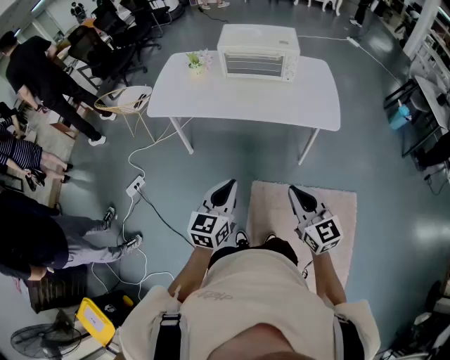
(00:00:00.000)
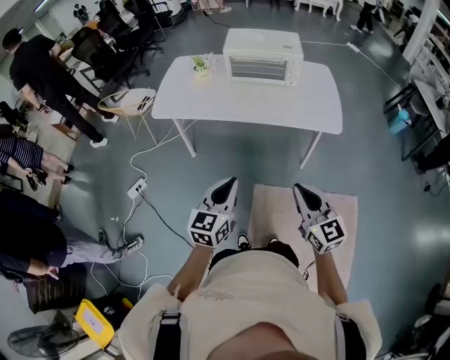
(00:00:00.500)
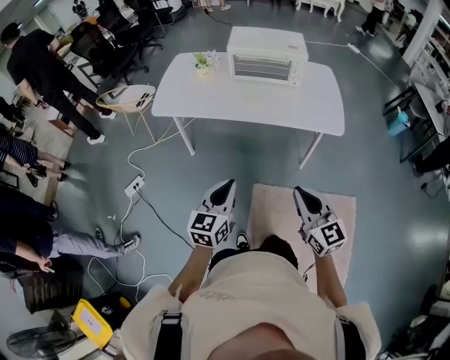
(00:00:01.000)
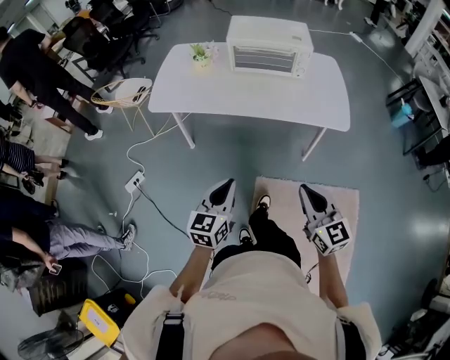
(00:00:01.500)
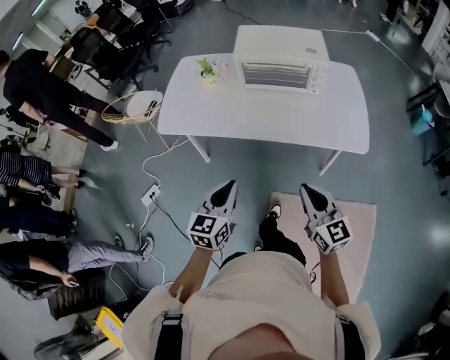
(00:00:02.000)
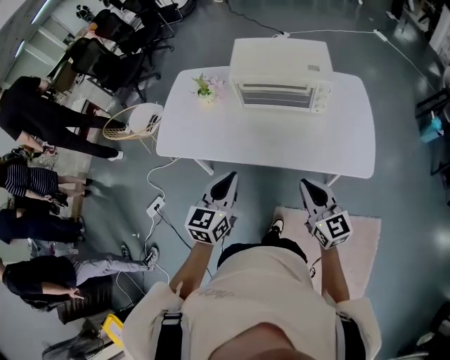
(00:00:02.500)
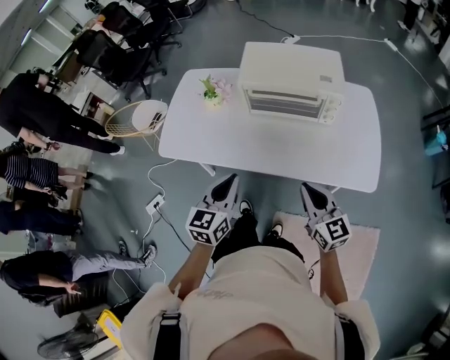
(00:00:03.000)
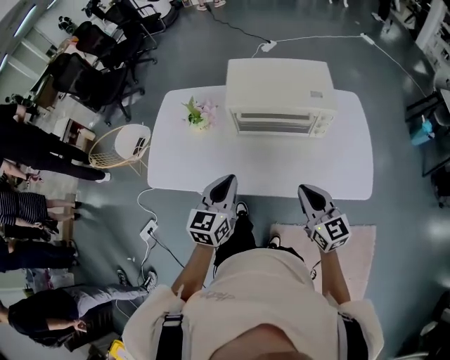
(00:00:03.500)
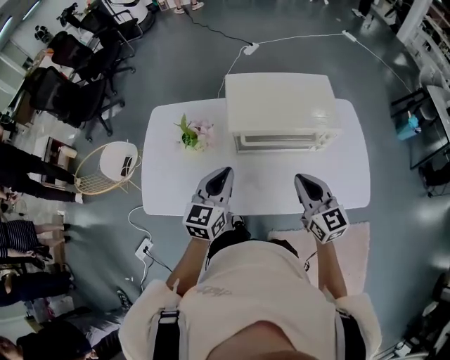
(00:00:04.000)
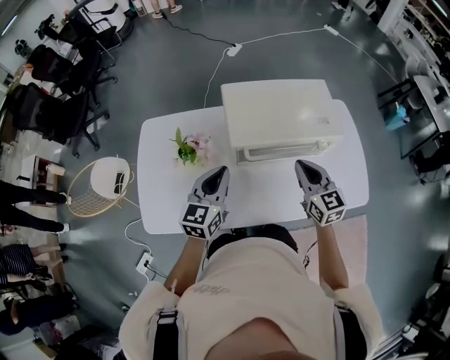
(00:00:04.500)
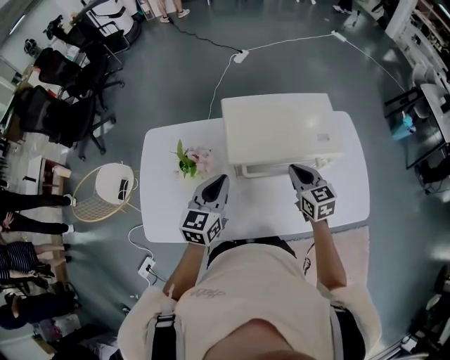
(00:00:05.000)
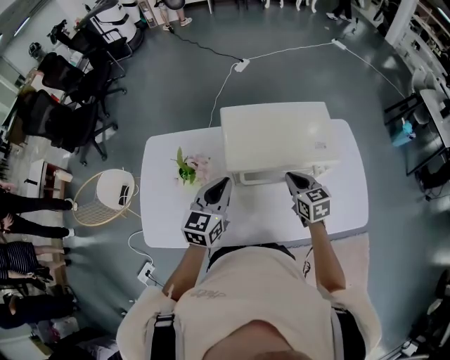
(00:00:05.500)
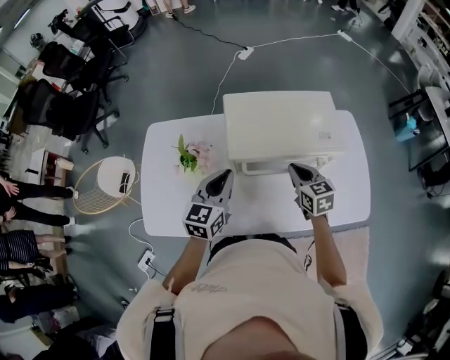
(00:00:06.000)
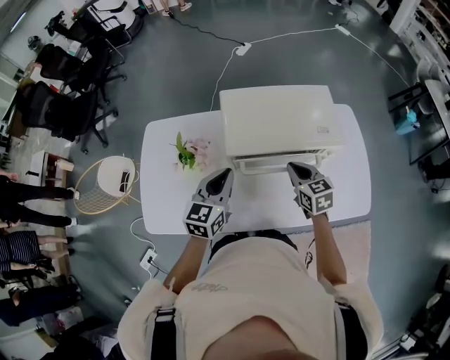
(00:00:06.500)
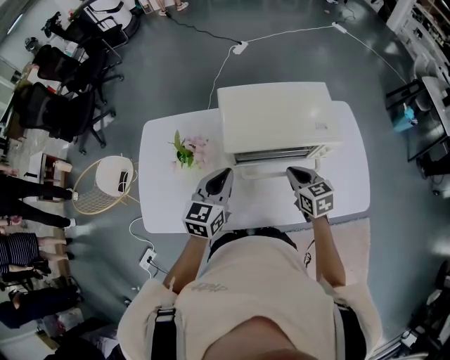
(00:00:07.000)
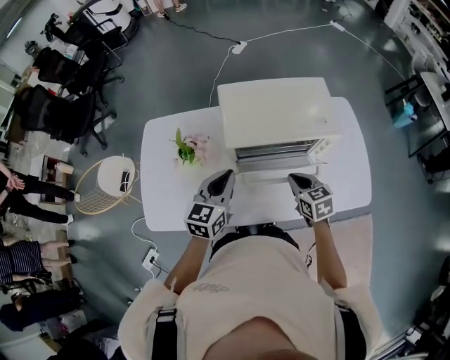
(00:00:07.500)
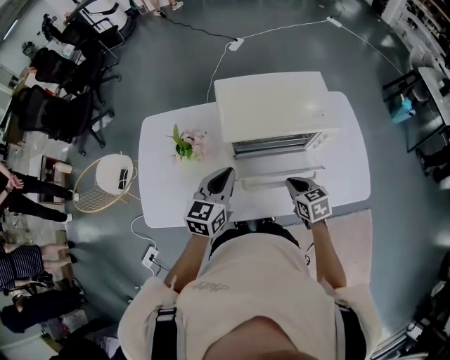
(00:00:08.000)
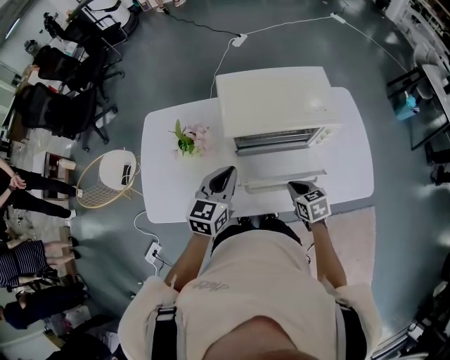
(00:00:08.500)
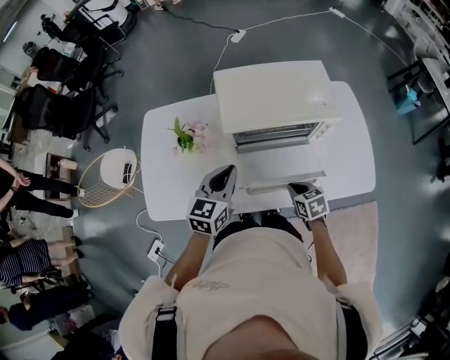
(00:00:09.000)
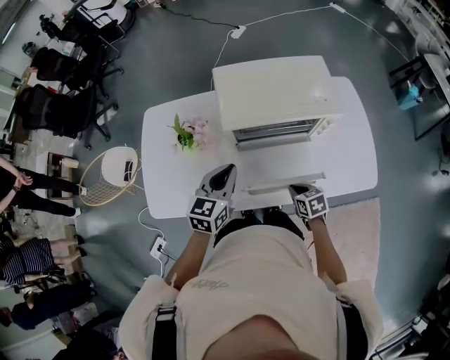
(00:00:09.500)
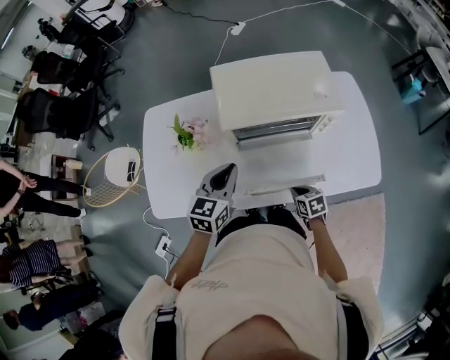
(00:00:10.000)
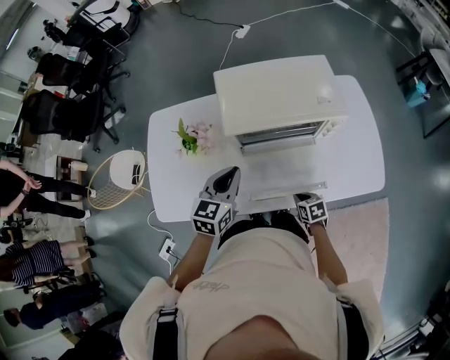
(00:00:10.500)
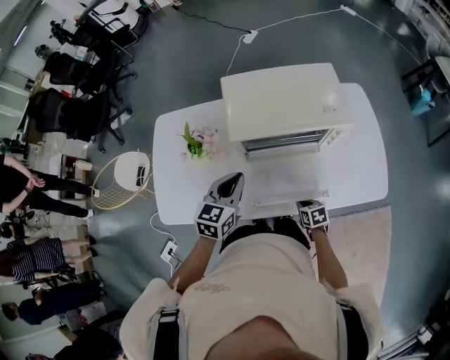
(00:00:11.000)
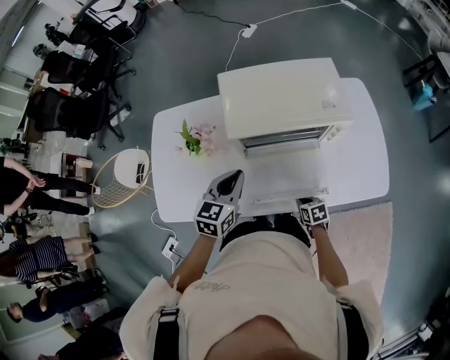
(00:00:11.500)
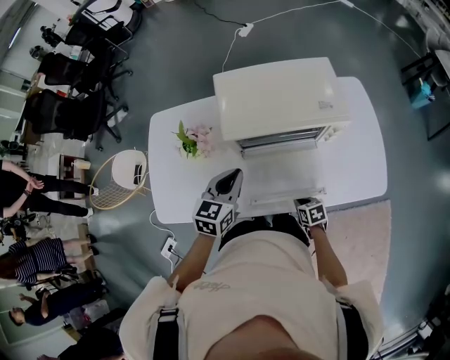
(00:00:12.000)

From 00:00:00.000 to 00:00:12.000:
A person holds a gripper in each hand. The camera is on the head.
From 00:00:00.000 to 00:00:02.000: Both grippers move forward, some 15 cm.
From 00:00:02.000 to 00:00:04.000: The grippers both shift forward by some 40 cm.
From 00:00:04.000 to 00:00:06.000: The left gripper goes some 10 cm forward, while the right gripper is displaced forward and downward by roughly 15 cm, and swivels about 20 degrees.
From 00:00:06.000 to 00:00:08.000: The left gripper ends up about 5 cm from where it was, while the right gripper travels backward and downward by about 15 cm.
From 00:00:08.000 to 00:00:10.000: The right gripper moves downward and backward, about 15 cm.
From 00:00:10.000 to 00:00:12.000: There are only small adjustments of the grippers.

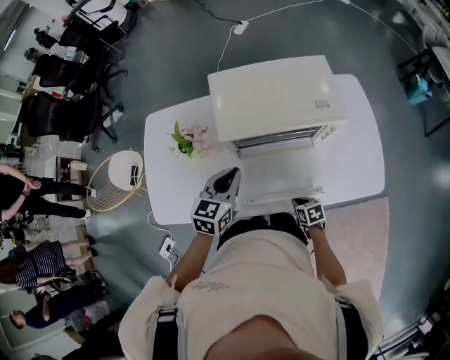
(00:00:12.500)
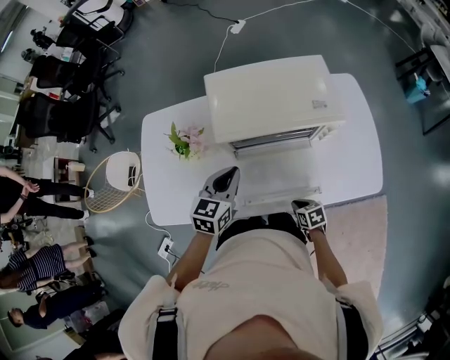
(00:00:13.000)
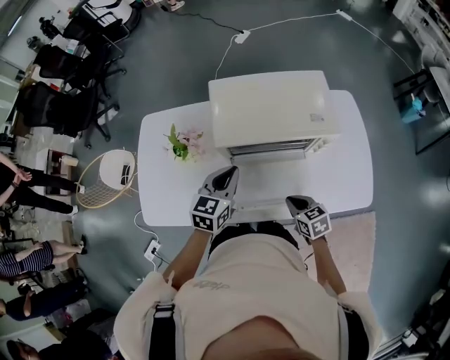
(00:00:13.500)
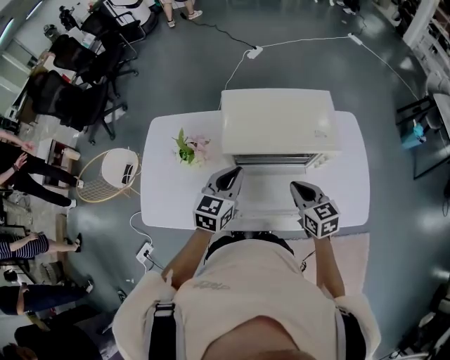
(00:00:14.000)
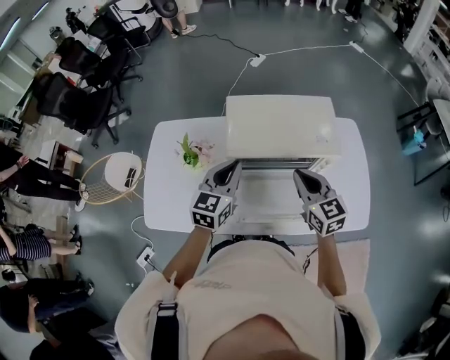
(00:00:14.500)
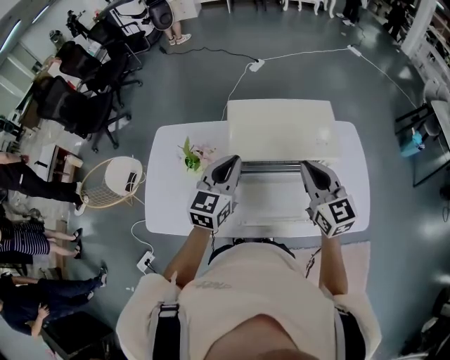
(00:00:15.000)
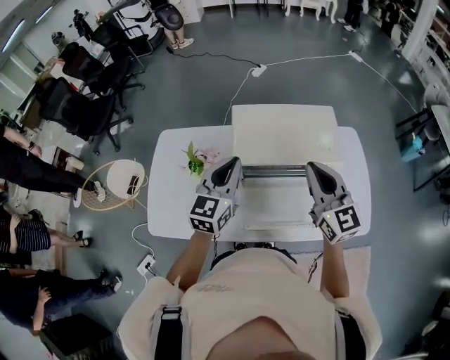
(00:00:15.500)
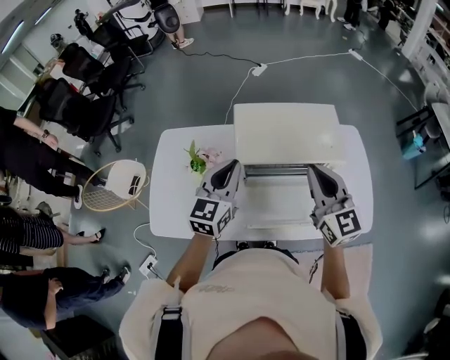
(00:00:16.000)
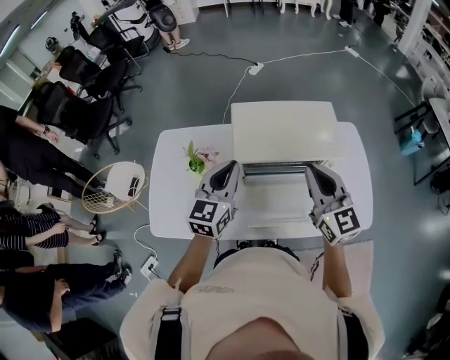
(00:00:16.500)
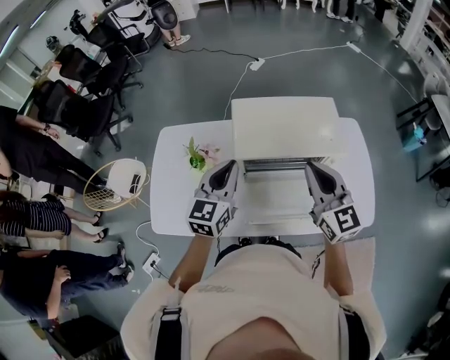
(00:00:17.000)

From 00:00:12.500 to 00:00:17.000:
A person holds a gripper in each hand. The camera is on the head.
From 00:00:12.500 to 00:00:14.500: The right gripper travels upward and forward by approximately 40 cm, and angles its fingers upward, by some 40 degrees, while the left gripper shifts some 10 cm upward.
From 00:00:14.500 to 00:00:17.000: The left gripper changes place by about 5 cm. Meanwhile the right gripper heads upward, covering approximately 10 cm.

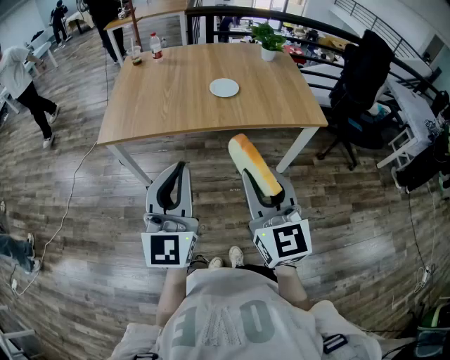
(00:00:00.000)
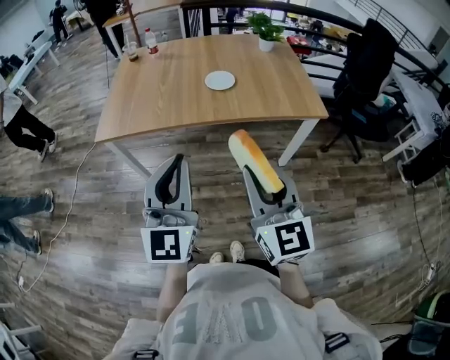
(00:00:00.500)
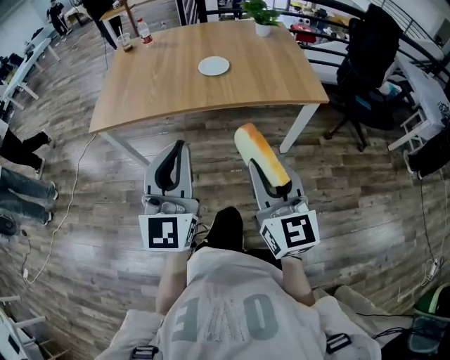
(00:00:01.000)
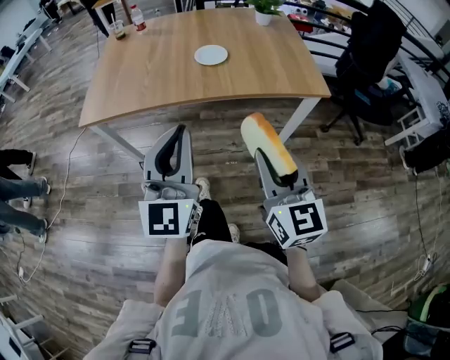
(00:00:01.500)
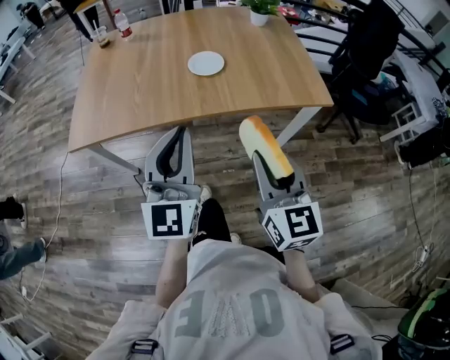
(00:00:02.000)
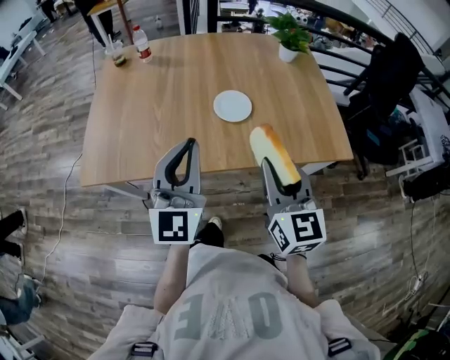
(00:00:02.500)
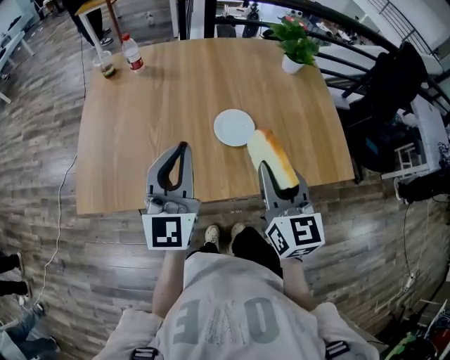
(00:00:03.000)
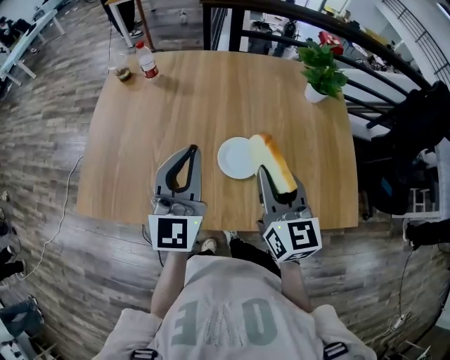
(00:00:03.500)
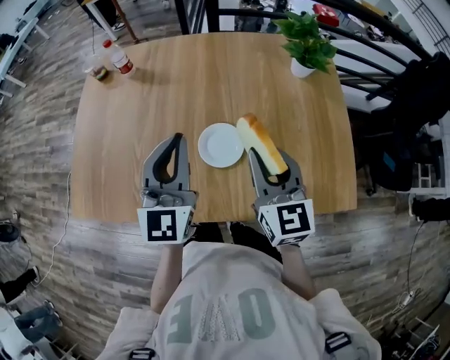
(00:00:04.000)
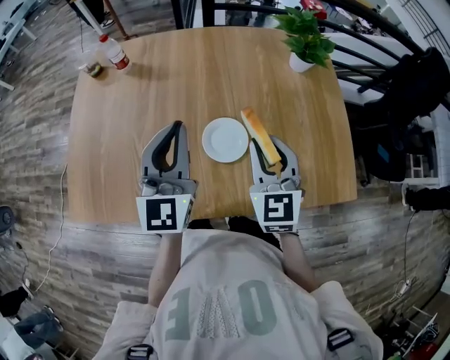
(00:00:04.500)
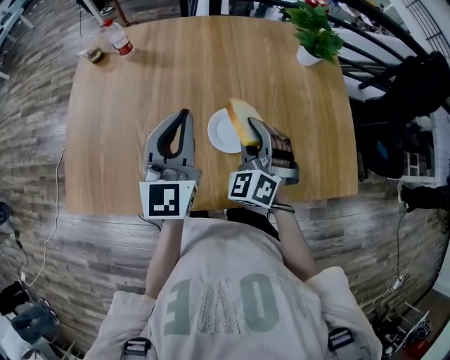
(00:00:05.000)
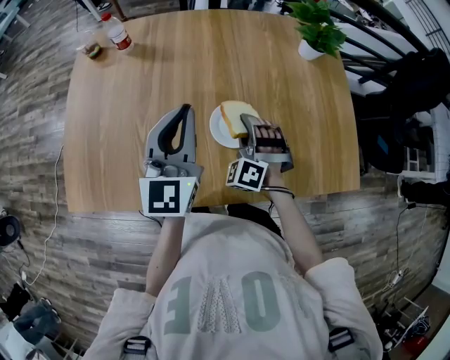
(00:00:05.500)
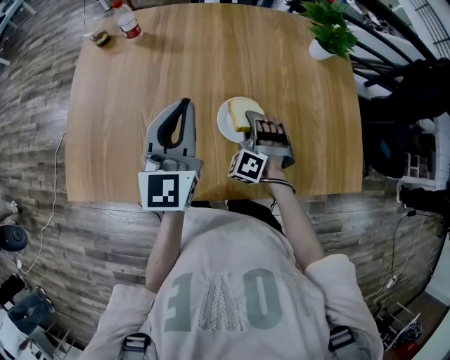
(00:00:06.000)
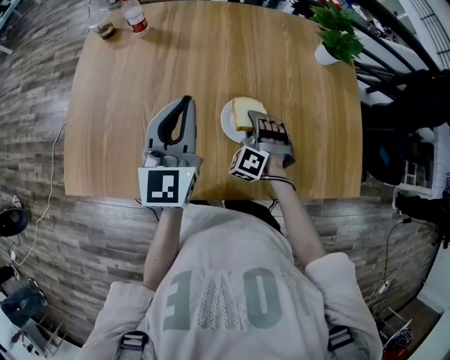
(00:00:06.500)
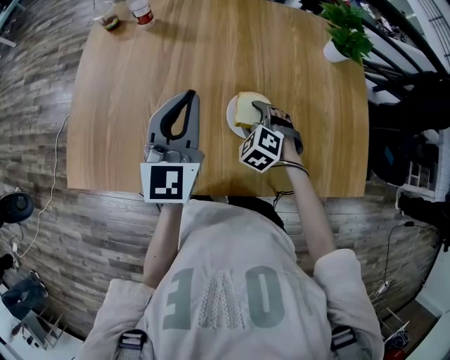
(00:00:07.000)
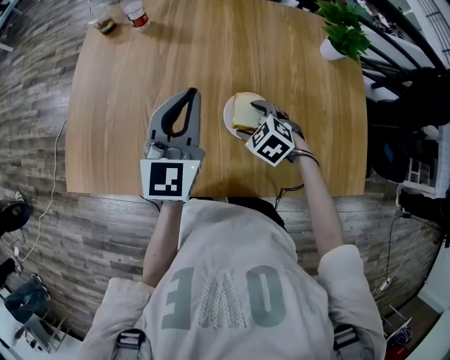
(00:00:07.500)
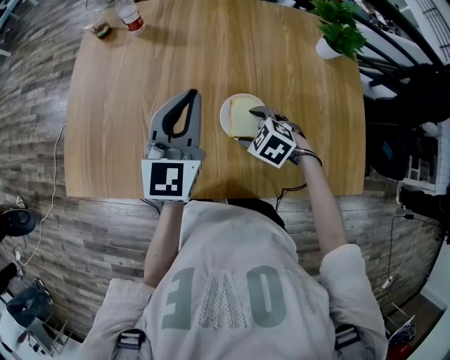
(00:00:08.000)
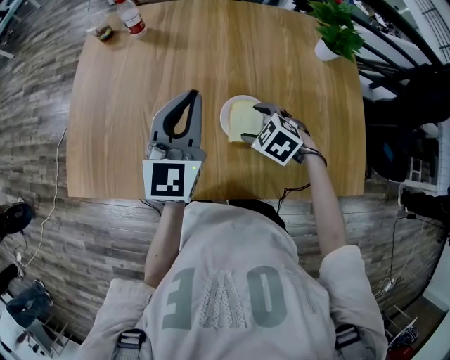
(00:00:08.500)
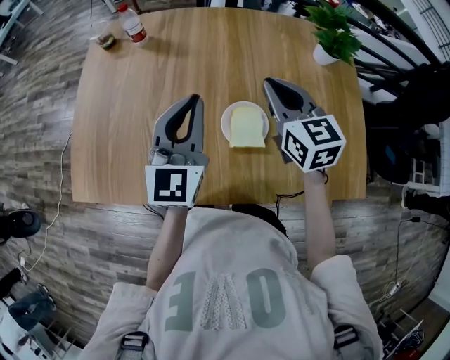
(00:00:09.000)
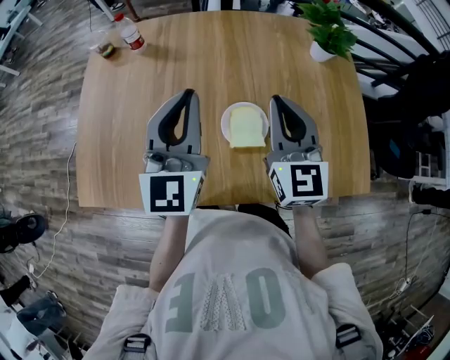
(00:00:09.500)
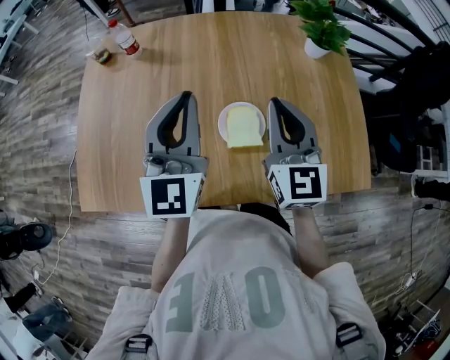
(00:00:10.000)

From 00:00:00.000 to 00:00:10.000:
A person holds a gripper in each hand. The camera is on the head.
From 00:00:00.000 to 00:00:02.000: The right gripper is displaced forward, to the right and downward by some 20 cm. The left gripper shifts about 20 cm forward.
From 00:00:02.000 to 00:00:04.000: Both grippers travel together forward, some 40 cm.
From 00:00:04.000 to 00:00:06.000: The right gripper shifts about 20 cm downward and to the left, and twists some 70 degrees counterclockwise, seen from behind. The left gripper travels to the left by approximately 5 cm.
From 00:00:06.000 to 00:00:08.000: The right gripper points its fingers approximately 30 degrees further downward, and opens.
From 00:00:08.000 to 00:00:10.000: The left gripper shifts approximately 5 cm upward, while the right gripper shifts approximately 25 cm upward, angles its fingers upward, by about 60 degrees, and closes.
